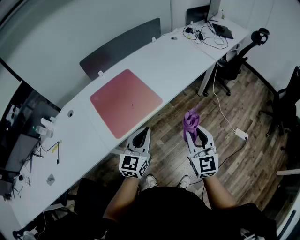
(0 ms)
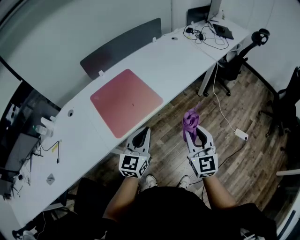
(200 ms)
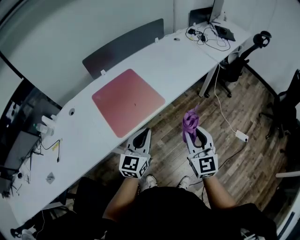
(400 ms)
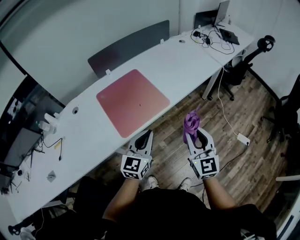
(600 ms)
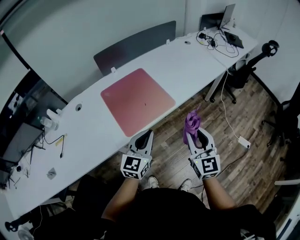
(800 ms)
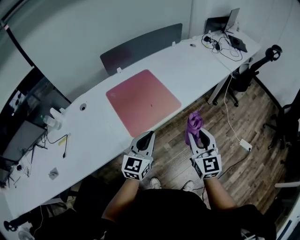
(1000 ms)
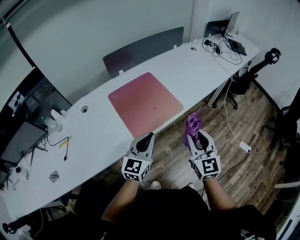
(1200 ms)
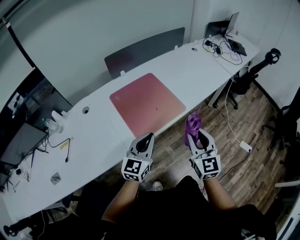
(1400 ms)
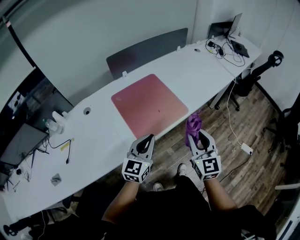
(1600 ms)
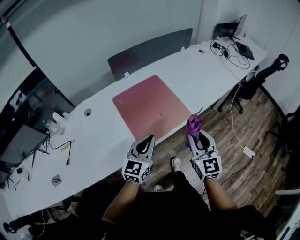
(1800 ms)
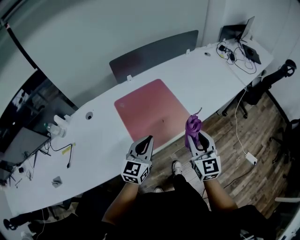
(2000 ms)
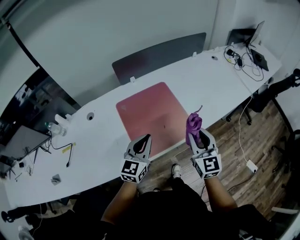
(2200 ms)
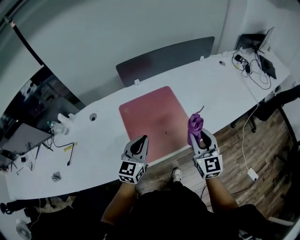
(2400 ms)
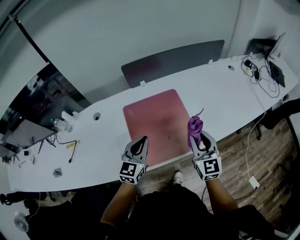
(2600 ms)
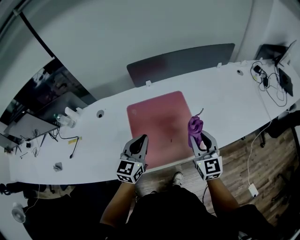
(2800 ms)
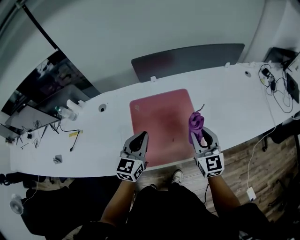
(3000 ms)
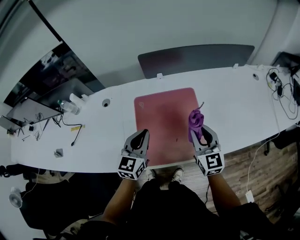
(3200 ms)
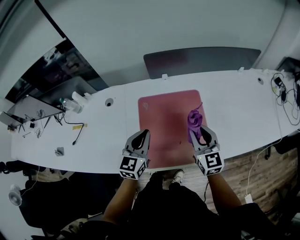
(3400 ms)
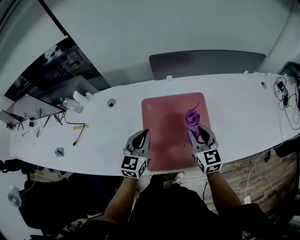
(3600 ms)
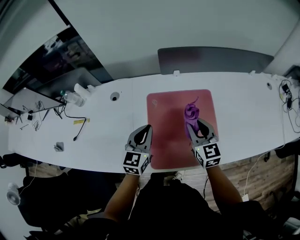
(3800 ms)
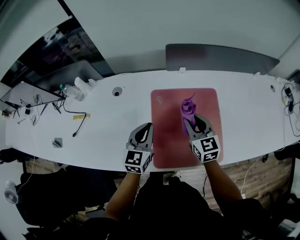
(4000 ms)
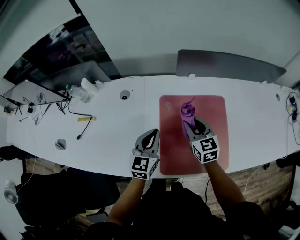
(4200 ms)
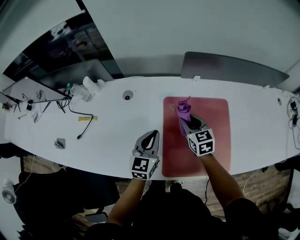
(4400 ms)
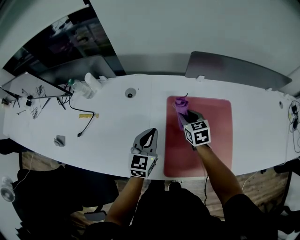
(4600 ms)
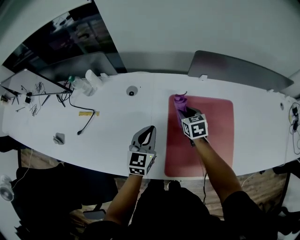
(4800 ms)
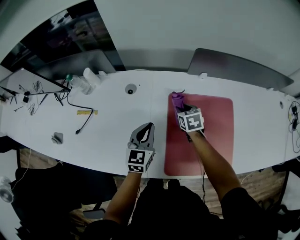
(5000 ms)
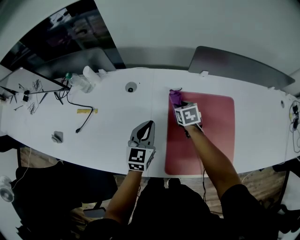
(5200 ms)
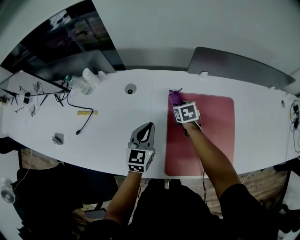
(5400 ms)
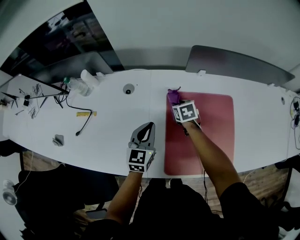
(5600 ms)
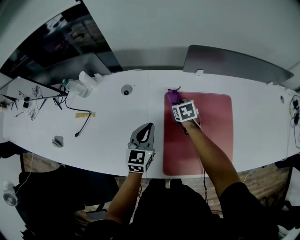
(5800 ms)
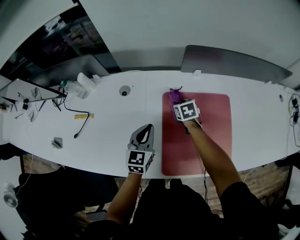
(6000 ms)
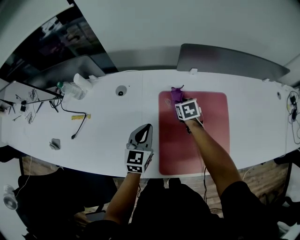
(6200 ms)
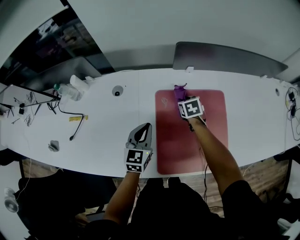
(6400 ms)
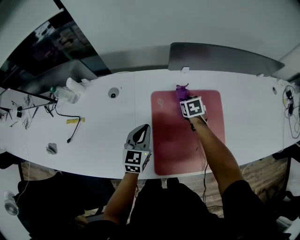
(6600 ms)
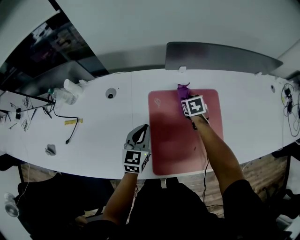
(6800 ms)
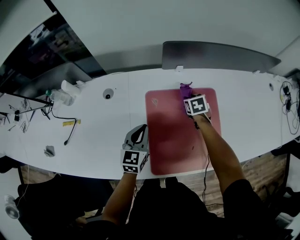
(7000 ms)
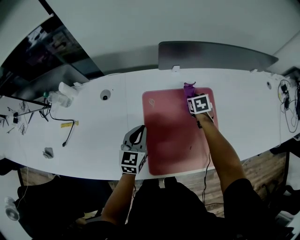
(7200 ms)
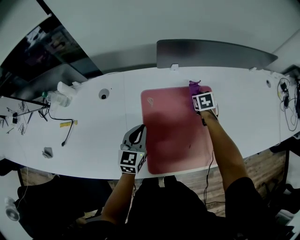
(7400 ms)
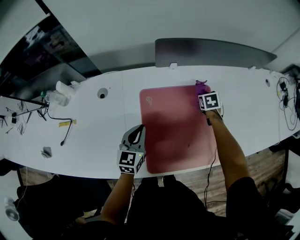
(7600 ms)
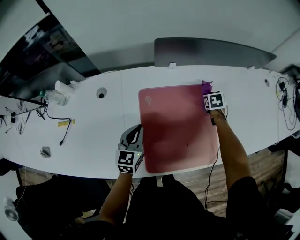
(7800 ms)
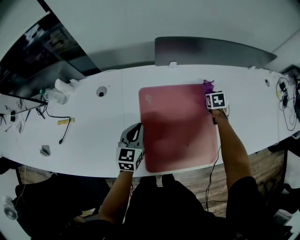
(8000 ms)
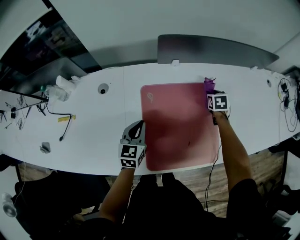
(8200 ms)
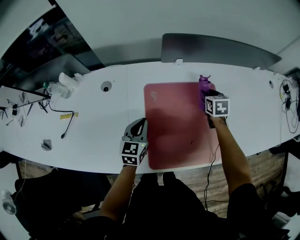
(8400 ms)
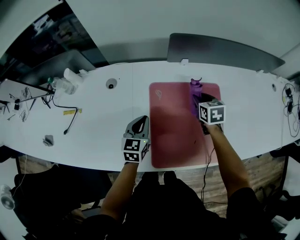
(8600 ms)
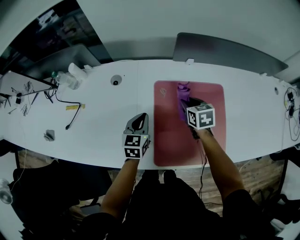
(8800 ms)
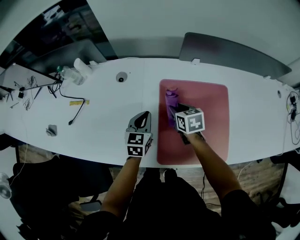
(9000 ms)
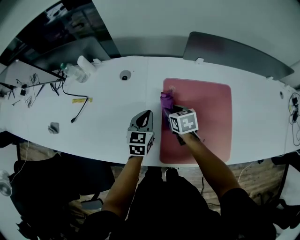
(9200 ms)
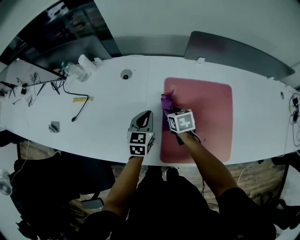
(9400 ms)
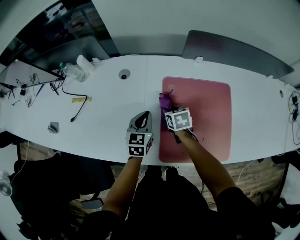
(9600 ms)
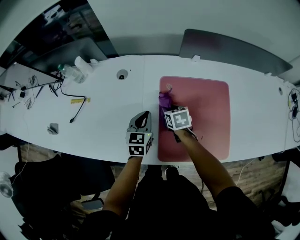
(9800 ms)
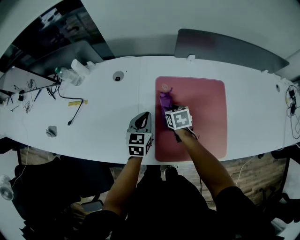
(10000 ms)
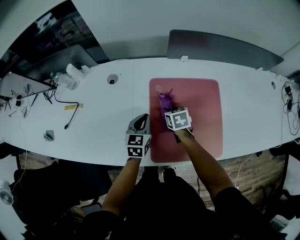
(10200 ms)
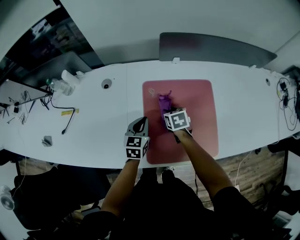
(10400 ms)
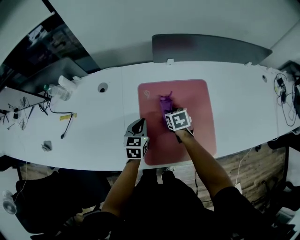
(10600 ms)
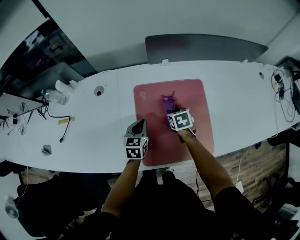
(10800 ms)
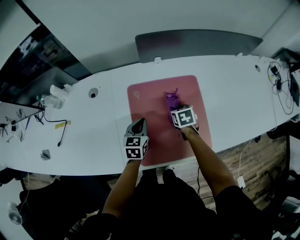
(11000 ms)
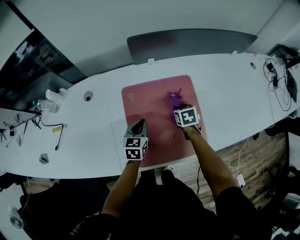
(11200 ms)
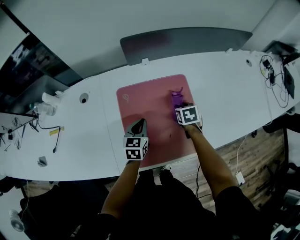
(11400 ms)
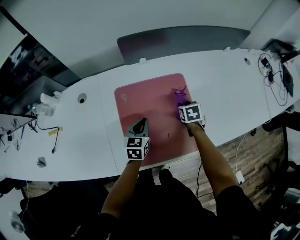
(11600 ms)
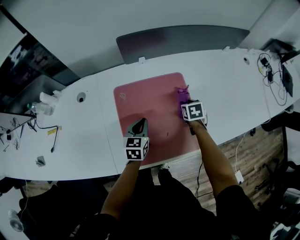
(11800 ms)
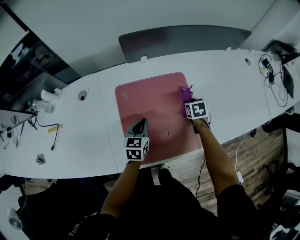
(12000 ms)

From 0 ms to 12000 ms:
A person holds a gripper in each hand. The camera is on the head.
From 0 ms to 1600 ms: The grippers both shift to the left by approximately 15 cm.
From 1600 ms to 3000 ms: The right gripper ends up some 30 cm from where it was, and changes its angle by roughly 30 degrees; the left gripper ends up roughly 20 cm from where it was, and changes its angle by roughly 30 degrees.
From 3000 ms to 4400 ms: The right gripper is displaced to the left, forward and downward by some 30 cm, and swivels some 30 degrees, while the left gripper is displaced to the left, downward and forward by approximately 20 cm.
From 4400 ms to 6000 ms: The right gripper is displaced downward and forward by some 15 cm, and changes its angle by roughly 20 degrees.
From 6000 ms to 7600 ms: The left gripper goes approximately 5 cm to the right; the right gripper heads to the right, covering some 25 cm.
From 7600 ms to 9000 ms: The right gripper shifts by about 30 cm, and rotates some 30 degrees, while the left gripper shifts by some 5 cm.
From 9000 ms to 10400 ms: The right gripper shifts by roughly 5 cm; the left gripper moves to the right, roughly 5 cm.
From 10400 ms to 12000 ms: The left gripper heads to the right, covering approximately 10 cm; the right gripper is displaced to the right by roughly 25 cm.

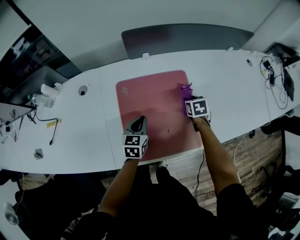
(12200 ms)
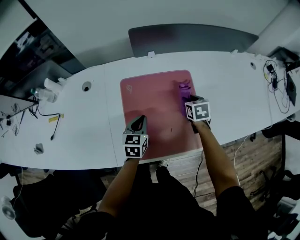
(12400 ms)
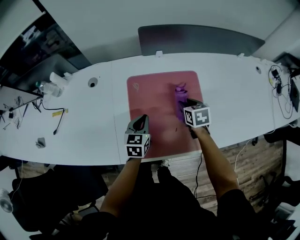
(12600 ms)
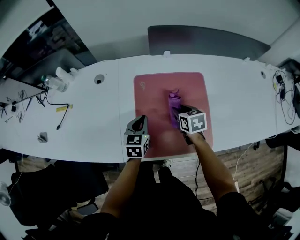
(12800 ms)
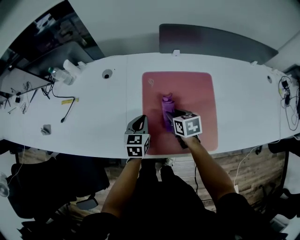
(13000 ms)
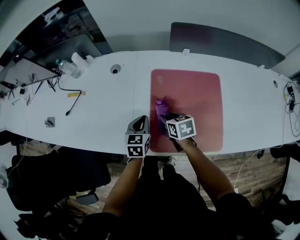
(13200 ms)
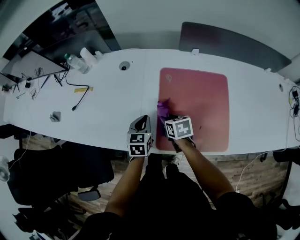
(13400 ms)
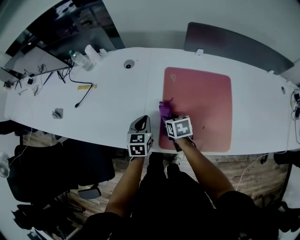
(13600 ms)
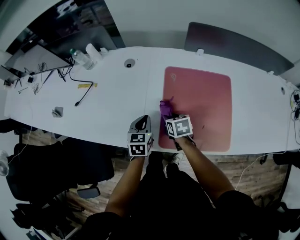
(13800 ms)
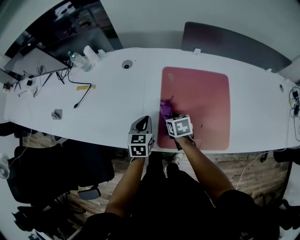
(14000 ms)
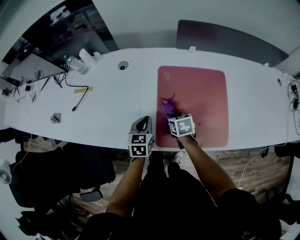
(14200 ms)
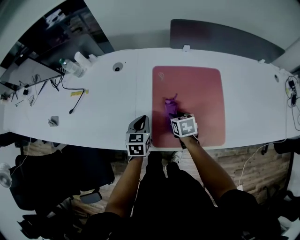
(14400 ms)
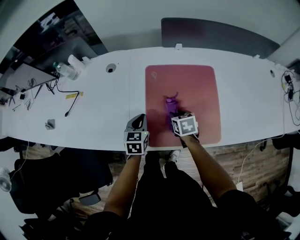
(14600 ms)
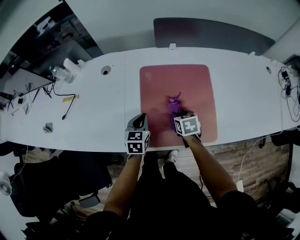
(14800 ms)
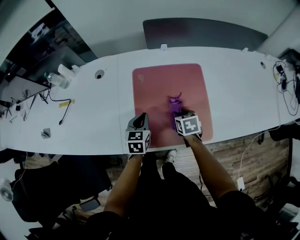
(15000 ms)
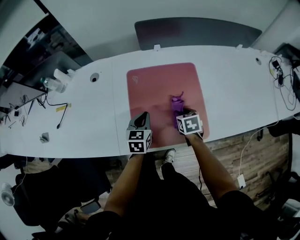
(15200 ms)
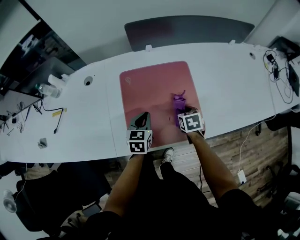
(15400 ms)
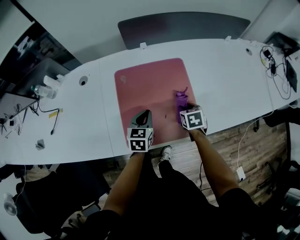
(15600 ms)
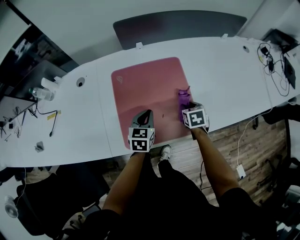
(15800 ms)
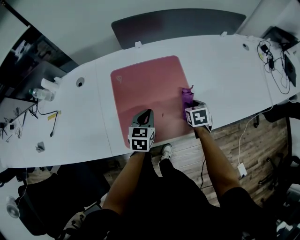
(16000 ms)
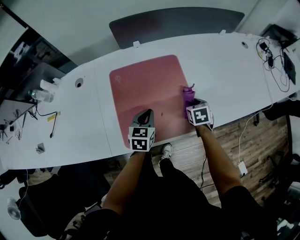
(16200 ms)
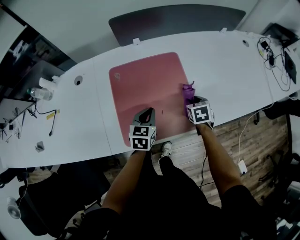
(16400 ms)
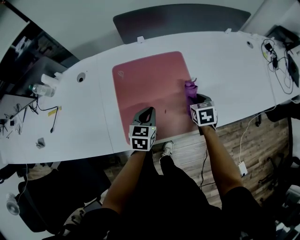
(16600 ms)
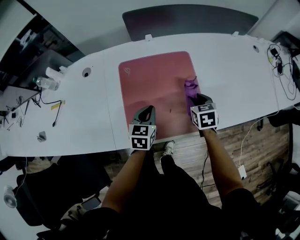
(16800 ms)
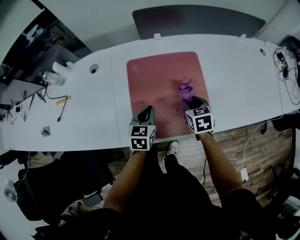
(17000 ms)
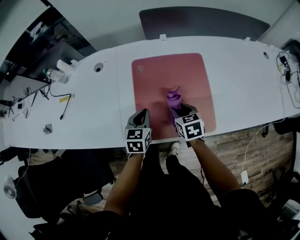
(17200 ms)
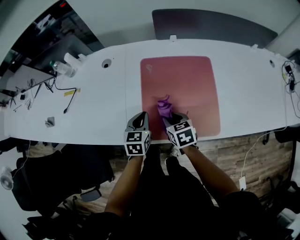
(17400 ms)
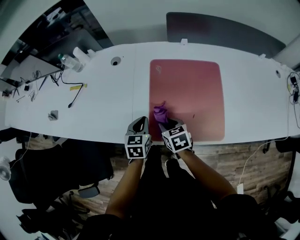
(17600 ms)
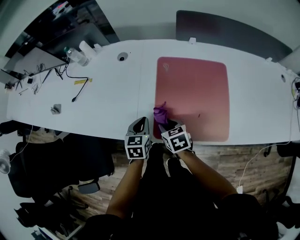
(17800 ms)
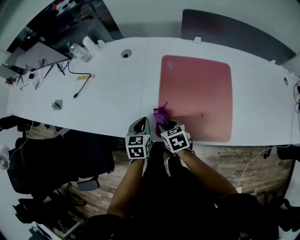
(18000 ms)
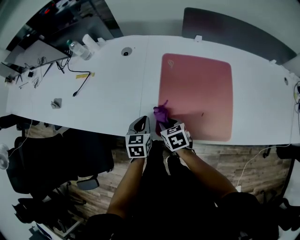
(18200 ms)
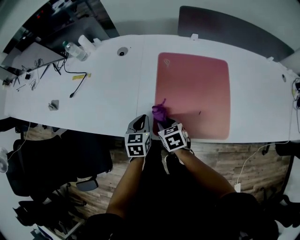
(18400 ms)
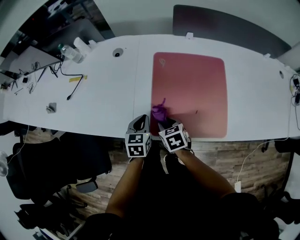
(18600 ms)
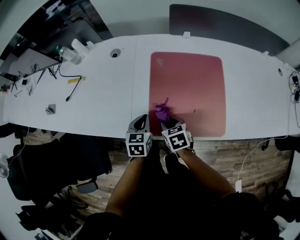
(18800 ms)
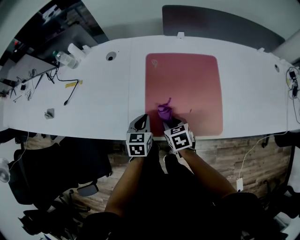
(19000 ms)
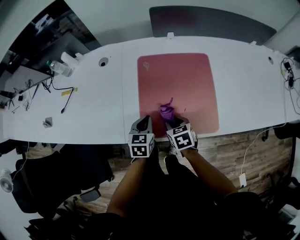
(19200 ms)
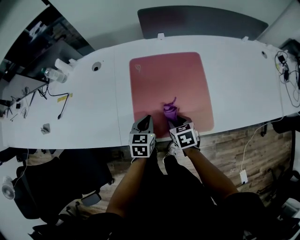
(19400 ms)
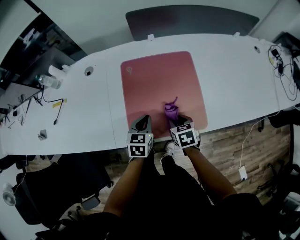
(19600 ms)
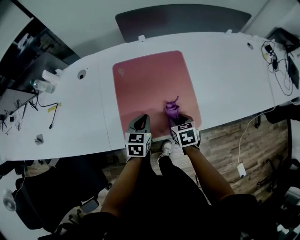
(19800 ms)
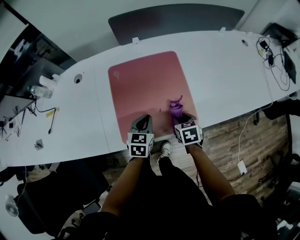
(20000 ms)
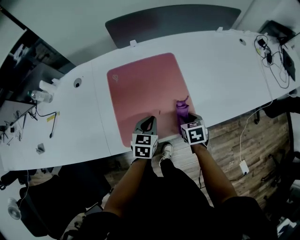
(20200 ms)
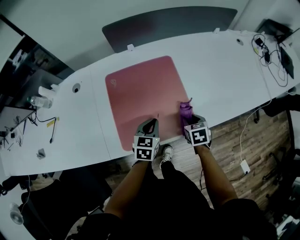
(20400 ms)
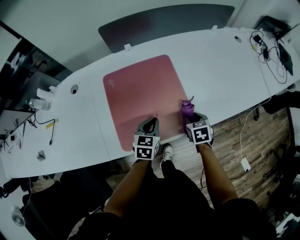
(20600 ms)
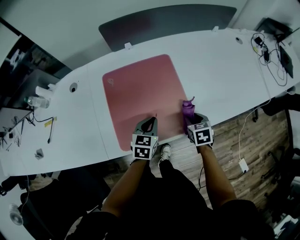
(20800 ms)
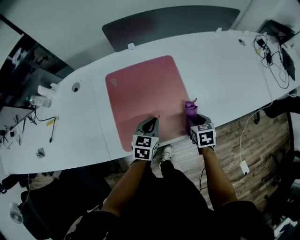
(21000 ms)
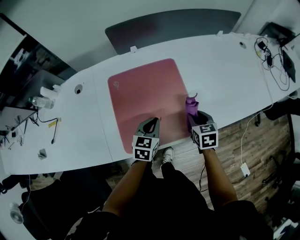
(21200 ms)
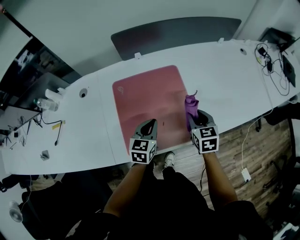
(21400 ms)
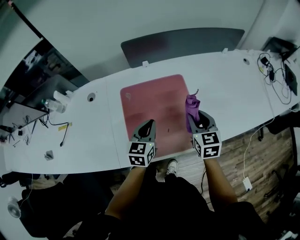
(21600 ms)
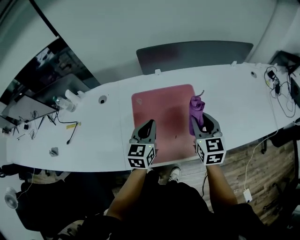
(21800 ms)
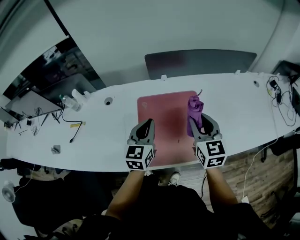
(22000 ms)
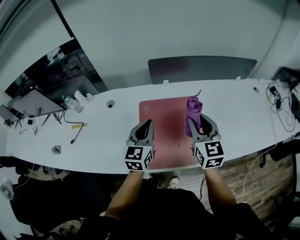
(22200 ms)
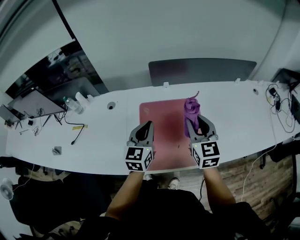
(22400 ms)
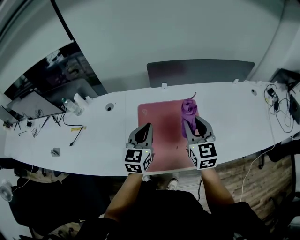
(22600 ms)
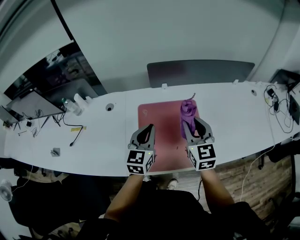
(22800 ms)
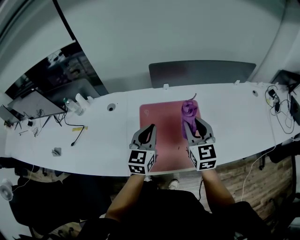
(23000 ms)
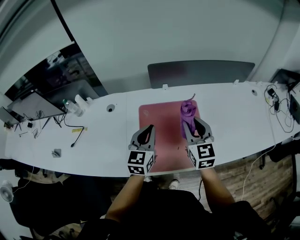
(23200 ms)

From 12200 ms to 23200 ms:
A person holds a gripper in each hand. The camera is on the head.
From 12200 ms to 13800 ms: The right gripper ends up approximately 35 cm from where it was, and turns by roughly 30 degrees. The left gripper moves about 20 cm, and swivels approximately 20 degrees.
From 13800 ms to 15400 ms: The left gripper ends up roughly 20 cm from where it was, while the right gripper ends up approximately 25 cm from where it was, and changes its angle by roughly 20 degrees.
From 15400 ms to 17000 ms: The right gripper travels upward by roughly 5 cm, and goes to the right and returns, approximately 10 cm each way.
From 17000 ms to 18400 ms: The left gripper changes place by approximately 15 cm. Meanwhile the right gripper shifts by roughly 25 cm, and turns by about 20 degrees.
From 18400 ms to 20000 ms: The left gripper shifts by roughly 20 cm, and swivels approximately 30 degrees; the right gripper changes place by approximately 25 cm, and rotates approximately 30 degrees.
From 20000 ms to 21600 ms: The left gripper goes some 10 cm upward and forward; the right gripper moves upward and forward, about 20 cm, and changes its angle by about 30 degrees.
From 21600 ms to 23200 ms: The two grippers go about 15 cm upward and to the left.
